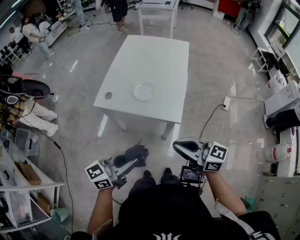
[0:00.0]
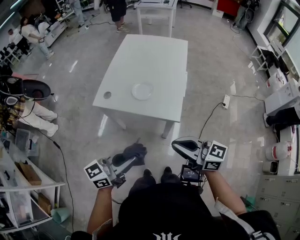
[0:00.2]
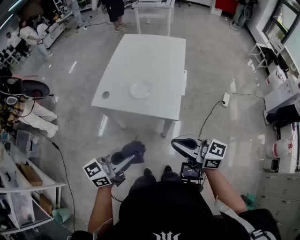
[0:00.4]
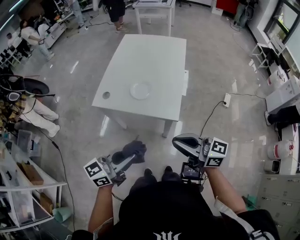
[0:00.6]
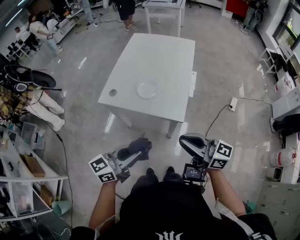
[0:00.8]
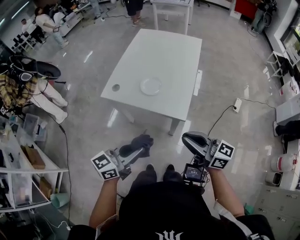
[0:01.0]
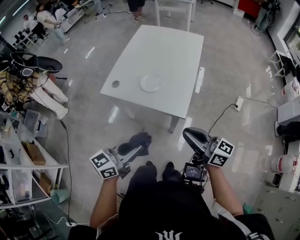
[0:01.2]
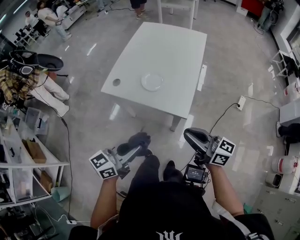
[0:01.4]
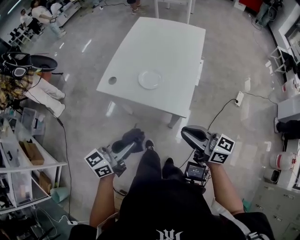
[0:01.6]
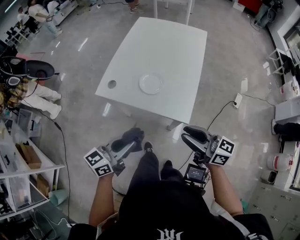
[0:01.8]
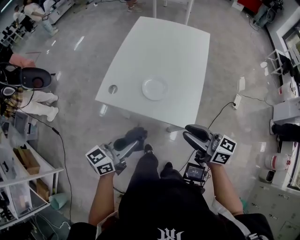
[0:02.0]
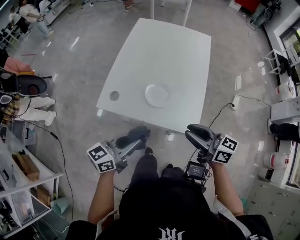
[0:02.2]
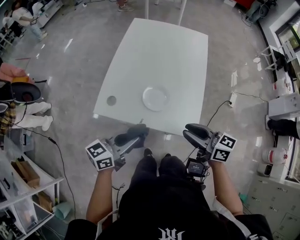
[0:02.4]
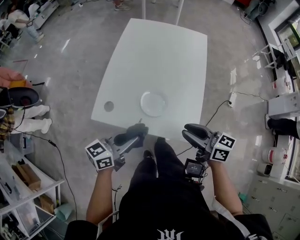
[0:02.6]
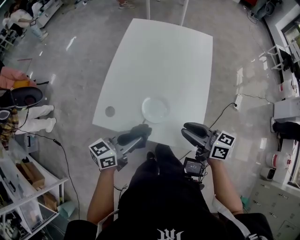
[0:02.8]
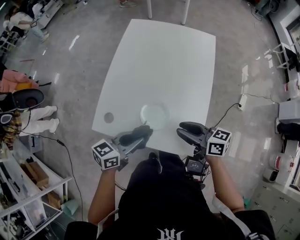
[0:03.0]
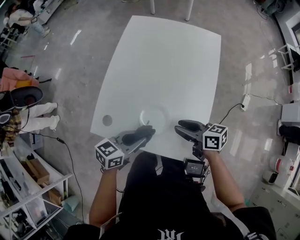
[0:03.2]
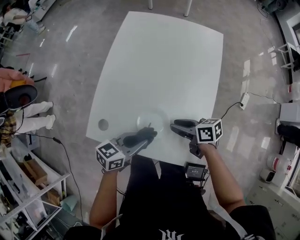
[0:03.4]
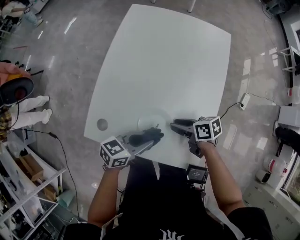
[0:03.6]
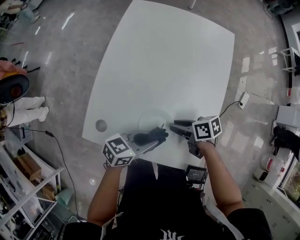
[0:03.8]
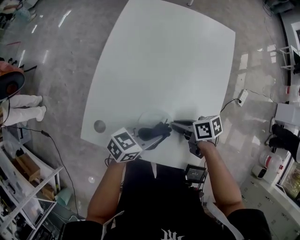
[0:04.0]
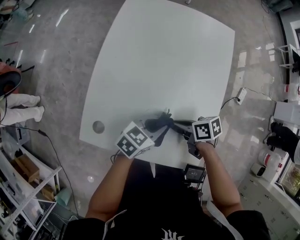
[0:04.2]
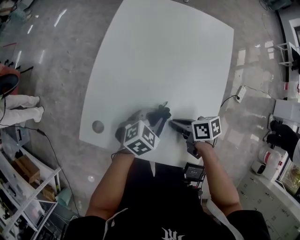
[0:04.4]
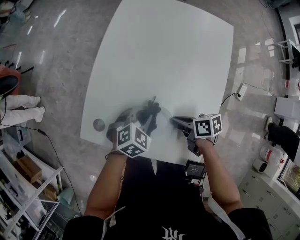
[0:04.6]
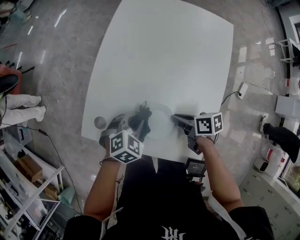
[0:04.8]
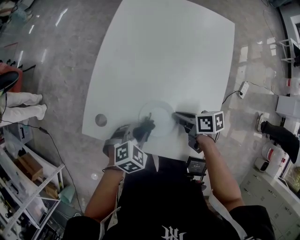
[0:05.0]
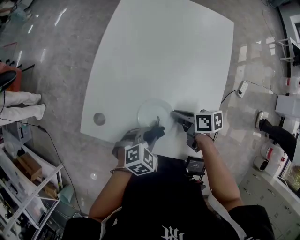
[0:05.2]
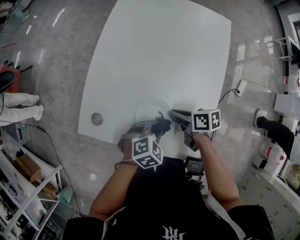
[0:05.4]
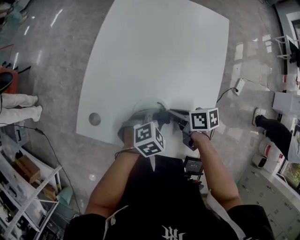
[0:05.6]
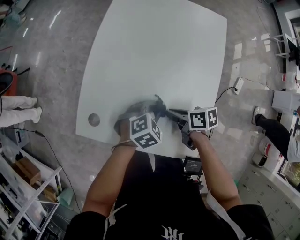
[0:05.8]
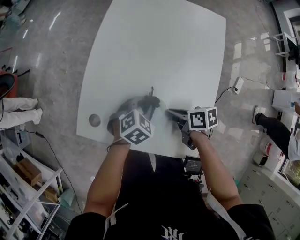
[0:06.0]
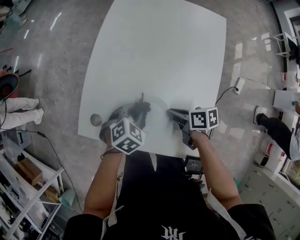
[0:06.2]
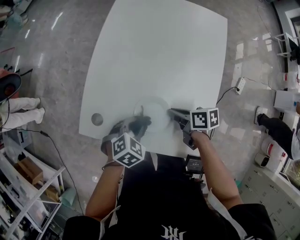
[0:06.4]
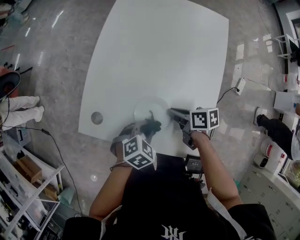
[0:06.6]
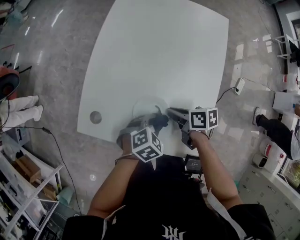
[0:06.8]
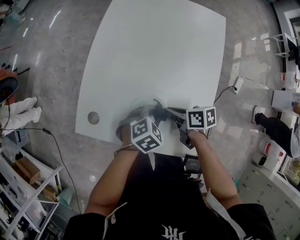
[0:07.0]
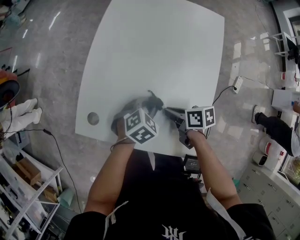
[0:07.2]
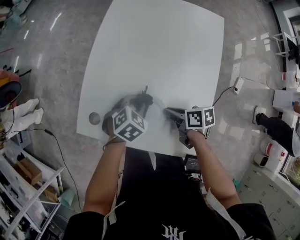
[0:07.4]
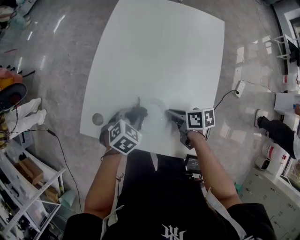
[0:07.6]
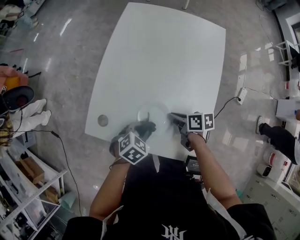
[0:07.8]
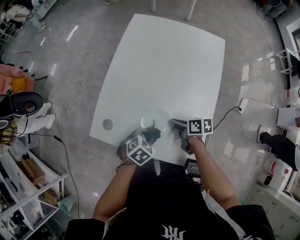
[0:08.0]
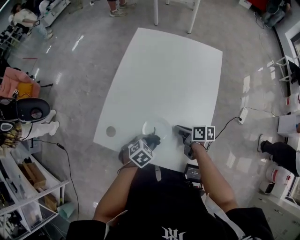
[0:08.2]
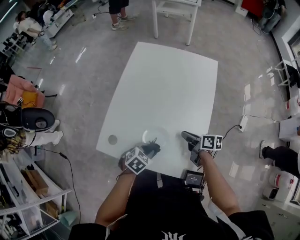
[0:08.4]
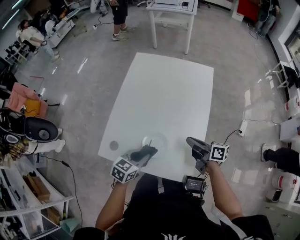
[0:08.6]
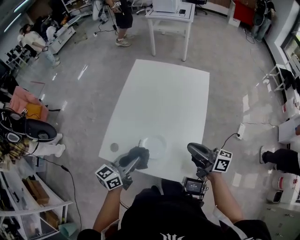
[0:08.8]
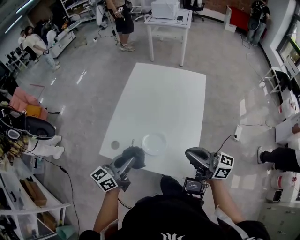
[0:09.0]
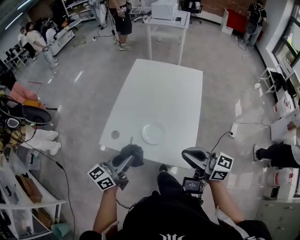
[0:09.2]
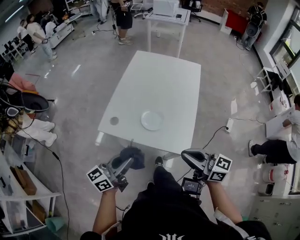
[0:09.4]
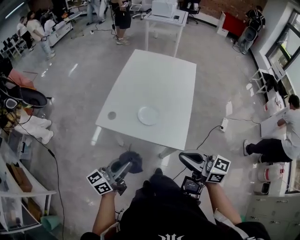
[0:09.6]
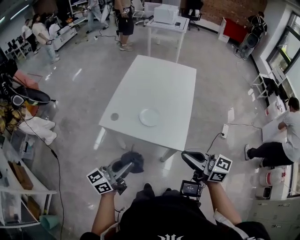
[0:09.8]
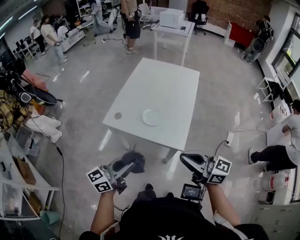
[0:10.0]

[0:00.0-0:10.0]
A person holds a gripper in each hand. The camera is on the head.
0:00.0 to 0:01.4: The left gripper shifts by approximately 5 cm. The right gripper goes approximately 5 cm to the right.
0:01.4 to 0:02.8: The two grippers go roughly 30 cm forward.
0:02.8 to 0:04.2: The right gripper shifts approximately 20 cm downward, and changes its angle by some 40 degrees. The left gripper ends up roughly 25 cm from where it was, and rotates roughly 30 degrees.
0:04.2 to 0:05.8: The left gripper turns by some 40 degrees.
0:07.2 to 0:08.6: The right gripper moves upward and to the right, some 15 cm, and rotates approximately 30 degrees. The left gripper goes approximately 15 cm upward, backward and to the left, and changes its angle by approximately 30 degrees.
0:08.6 to 0:10.0: The grippers both shift backward and upward by roughly 40 cm. The left gripper points its fingers roughly 40 degrees further upward. Meanwhile the right gripper rolls counterclockwise, seen from behind, by approximately 40 degrees.

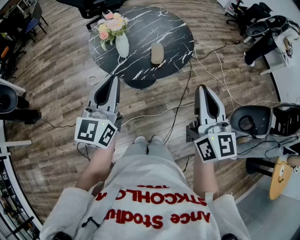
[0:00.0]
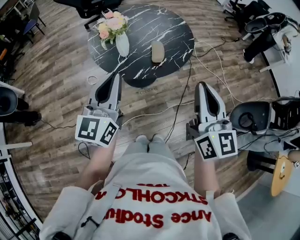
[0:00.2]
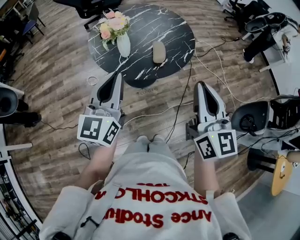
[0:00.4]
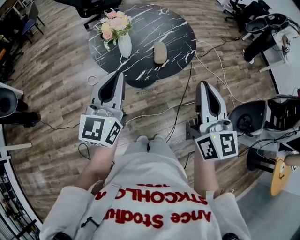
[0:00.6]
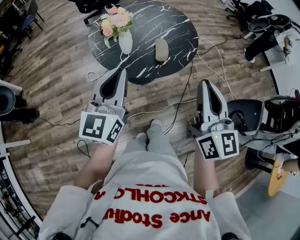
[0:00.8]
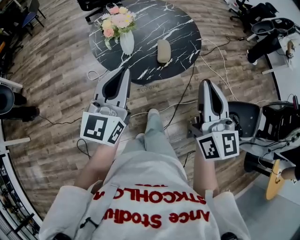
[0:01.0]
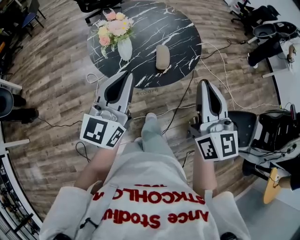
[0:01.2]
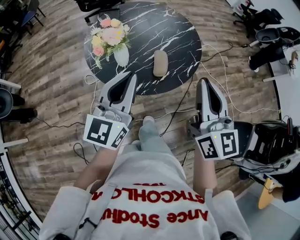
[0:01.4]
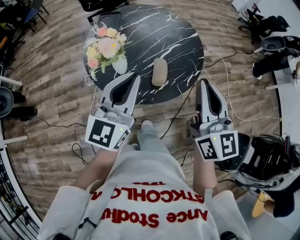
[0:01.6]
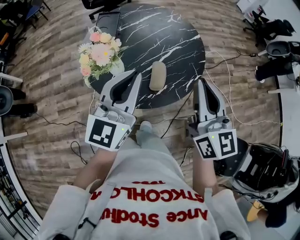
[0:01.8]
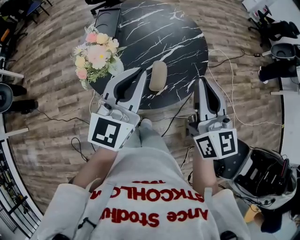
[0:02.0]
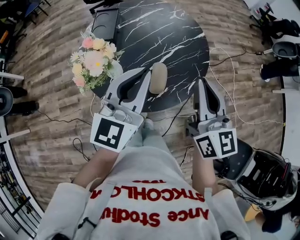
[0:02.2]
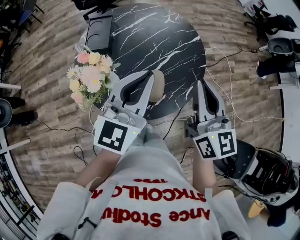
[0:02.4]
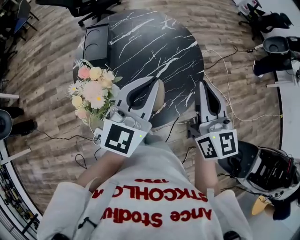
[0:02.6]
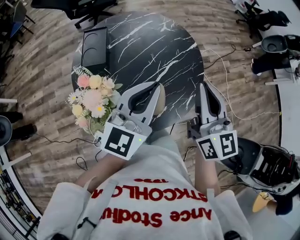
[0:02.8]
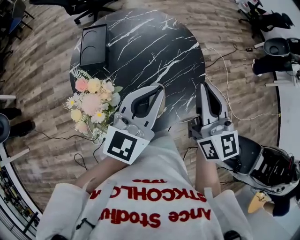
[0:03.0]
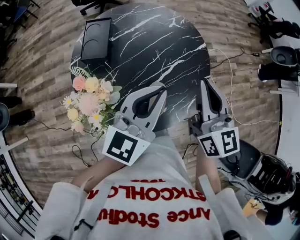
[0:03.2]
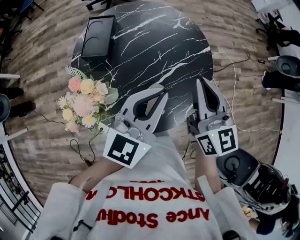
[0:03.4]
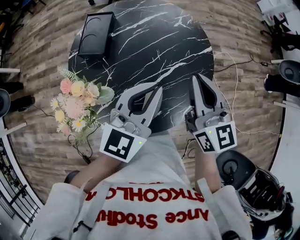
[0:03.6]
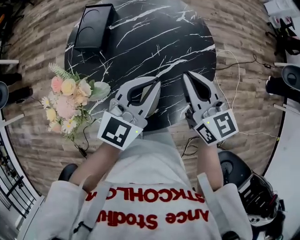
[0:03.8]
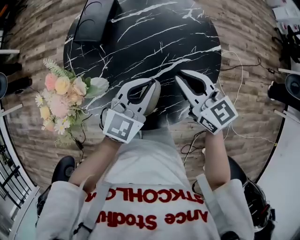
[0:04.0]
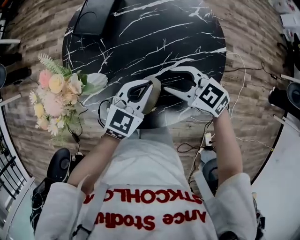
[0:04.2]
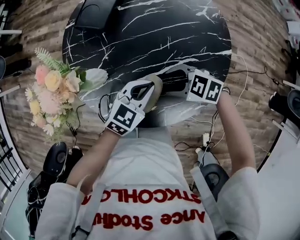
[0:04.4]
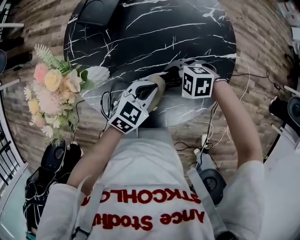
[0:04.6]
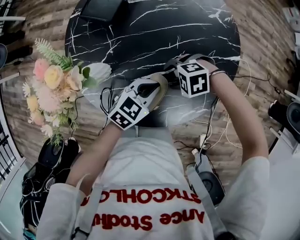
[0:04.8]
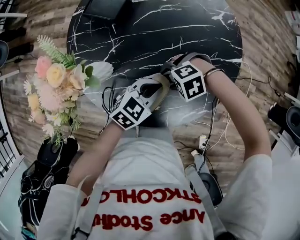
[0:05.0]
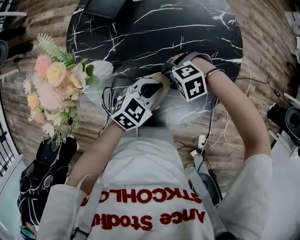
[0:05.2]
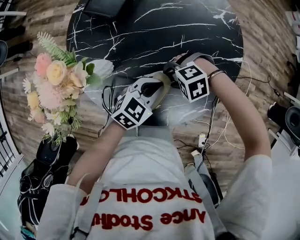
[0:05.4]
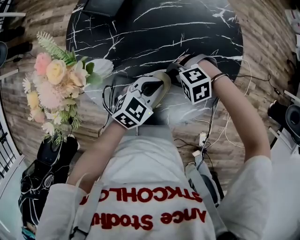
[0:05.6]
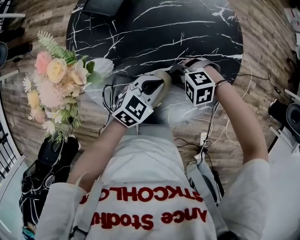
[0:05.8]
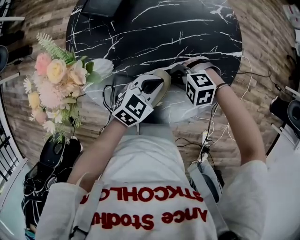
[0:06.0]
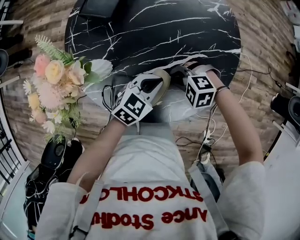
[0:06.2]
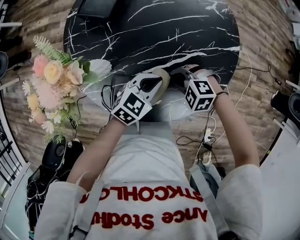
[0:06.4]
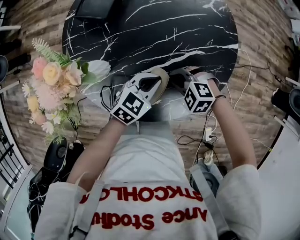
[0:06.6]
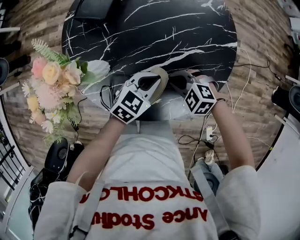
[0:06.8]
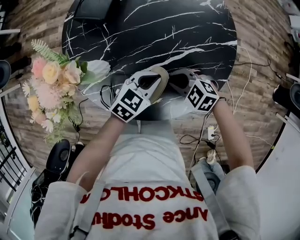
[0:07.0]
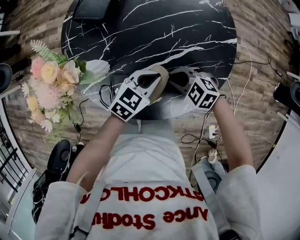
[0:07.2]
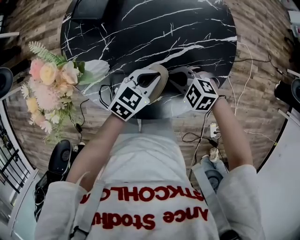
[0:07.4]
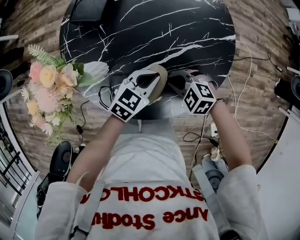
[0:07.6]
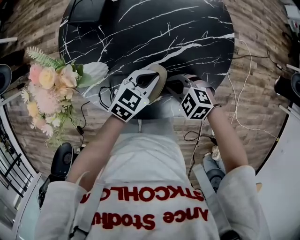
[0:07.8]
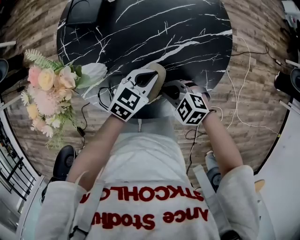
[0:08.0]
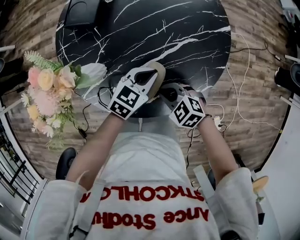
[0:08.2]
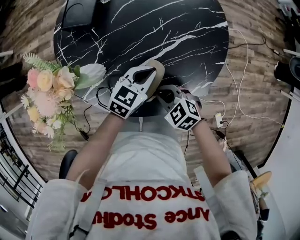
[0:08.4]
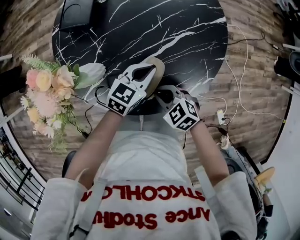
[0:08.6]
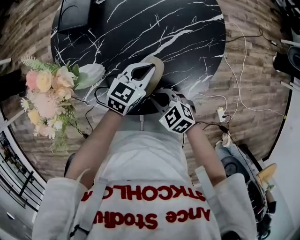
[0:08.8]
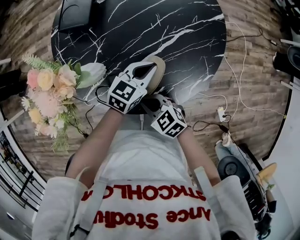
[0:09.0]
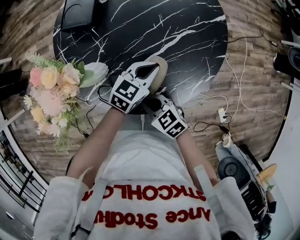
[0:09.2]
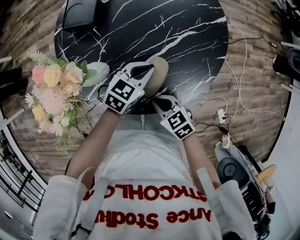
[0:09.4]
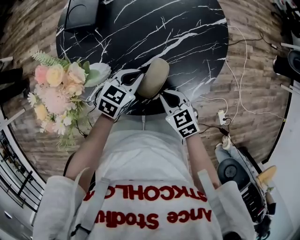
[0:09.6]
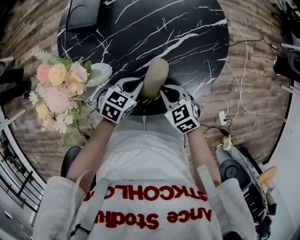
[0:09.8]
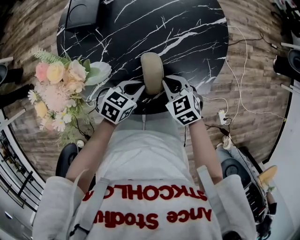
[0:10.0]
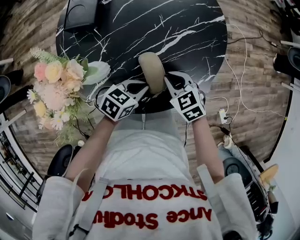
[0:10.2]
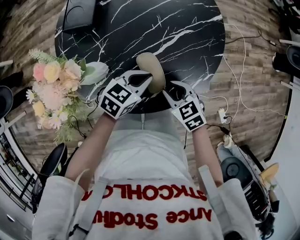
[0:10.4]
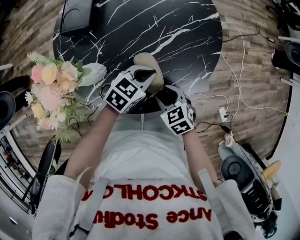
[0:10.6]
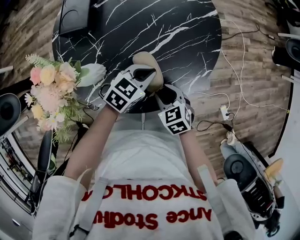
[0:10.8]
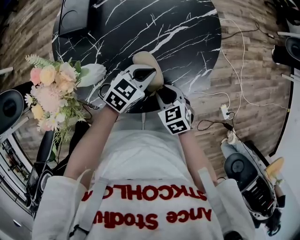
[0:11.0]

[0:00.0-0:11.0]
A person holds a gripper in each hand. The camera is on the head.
0:00.0 to 0:01.6: Both grippers travel together forward, approximately 20 cm.
0:01.6 to 0:03.2: The two grippers go approximately 20 cm forward.
0:03.2 to 0:04.8: Both grippers move downward, some 35 cm. The left gripper points its fingers some 30 degrees further downward, while the right gripper points its fingers approximately 60 degrees further downward, and opens.
0:04.8 to 0:06.2: The right gripper closes.
0:06.2 to 0:07.8: The right gripper changes its angle by about 30 degrees.
0:07.8 to 0:09.4: The right gripper ends up about 10 cm from where it was, and rotates around the line of its fingers by approximately 40 degrees, clockwise from behind.
0:09.4 to 0:11.0: The left gripper moves roughly 10 cm backward and comes back. The right gripper moves approximately 10 cm forward and comes back, and opens up.

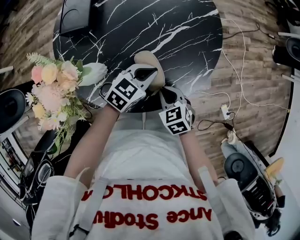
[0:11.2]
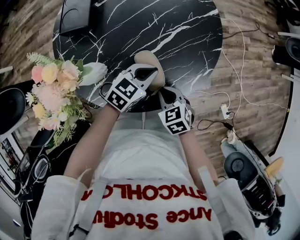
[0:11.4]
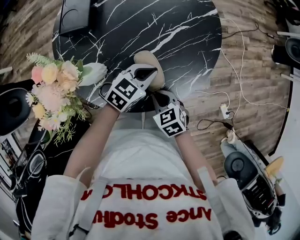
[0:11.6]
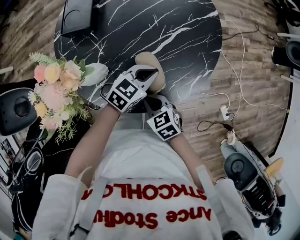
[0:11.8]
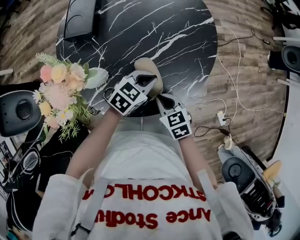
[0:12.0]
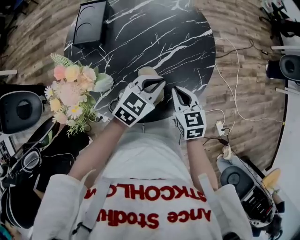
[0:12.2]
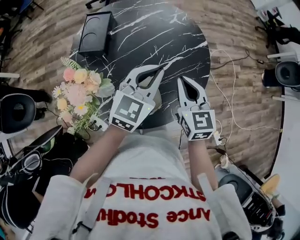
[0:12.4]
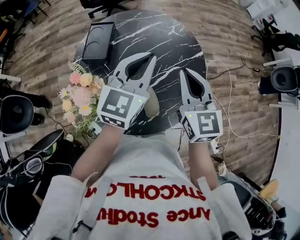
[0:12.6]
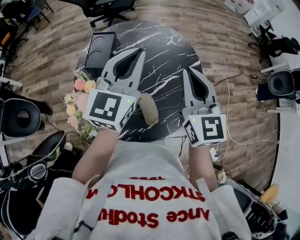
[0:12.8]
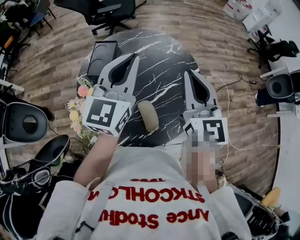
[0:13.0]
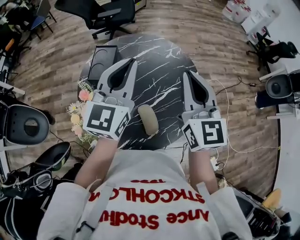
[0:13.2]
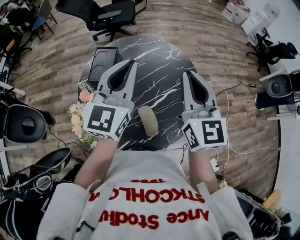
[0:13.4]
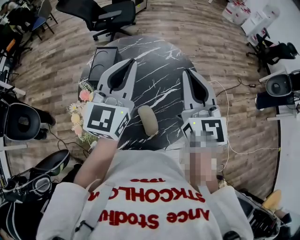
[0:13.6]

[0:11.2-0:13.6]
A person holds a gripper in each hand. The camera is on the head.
0:11.2 to 0:12.4: The left gripper goes roughly 20 cm upward, and swivels some 30 degrees; the right gripper is displaced upward and forward by approximately 25 cm, and angles its fingers upward, by about 30 degrees.
0:12.4 to 0:13.6: The right gripper is displaced upward by approximately 20 cm, and changes its angle by some 20 degrees, while the left gripper shifts roughly 20 cm upward and to the left, and changes its angle by approximately 30 degrees.
